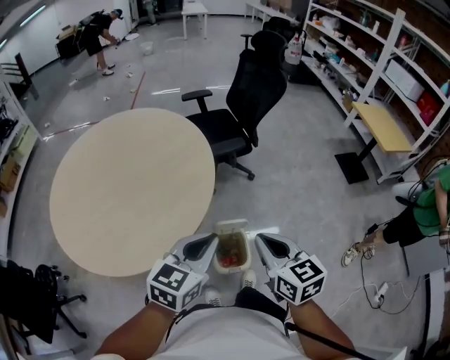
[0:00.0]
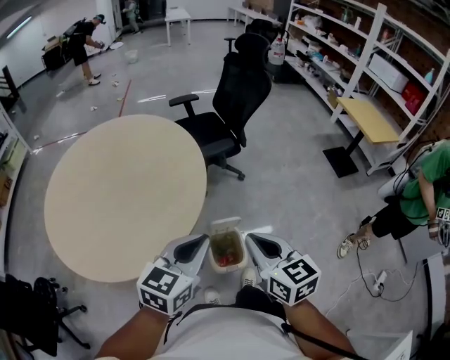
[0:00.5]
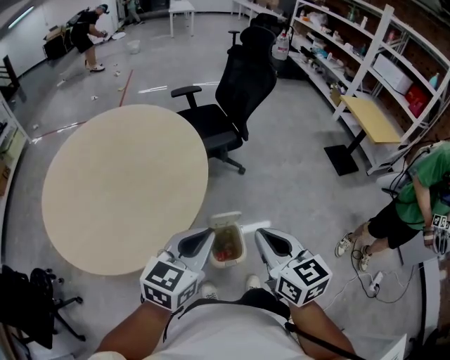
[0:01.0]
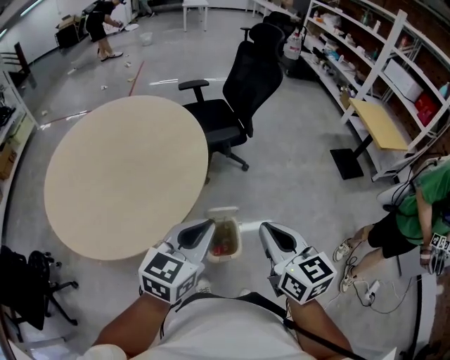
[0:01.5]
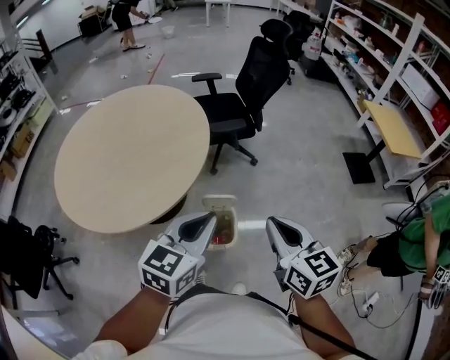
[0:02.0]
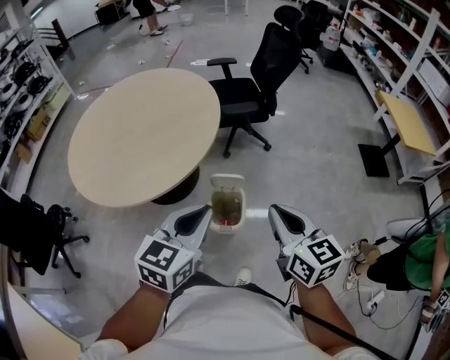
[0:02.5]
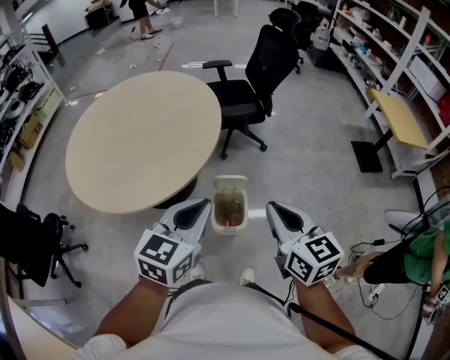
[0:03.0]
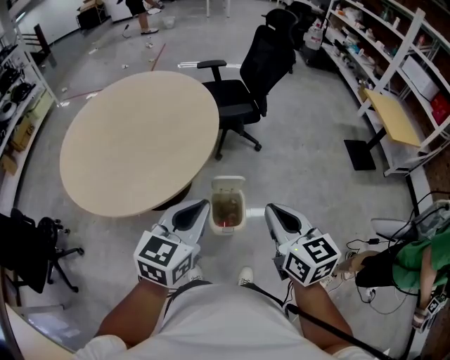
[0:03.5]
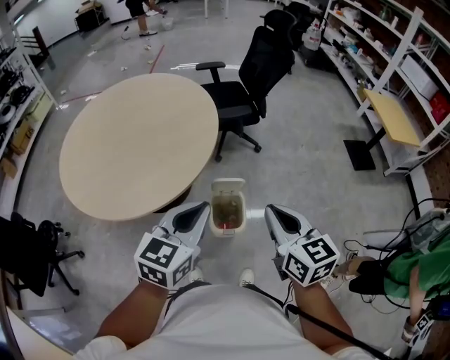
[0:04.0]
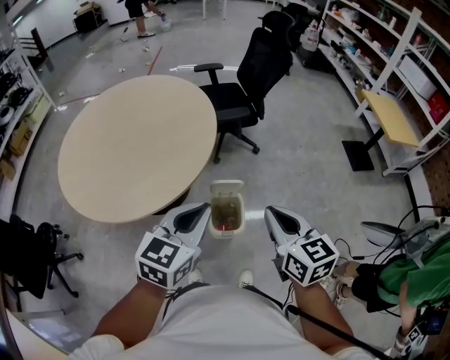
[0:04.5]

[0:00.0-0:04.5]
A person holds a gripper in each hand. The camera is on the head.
0:00.0 to 0:02.0: Both grippers move to the right, about 10 cm.
0:02.0 to 0:04.5: The right gripper moves roughly 5 cm. The left gripper is displaced to the left by approximately 5 cm.

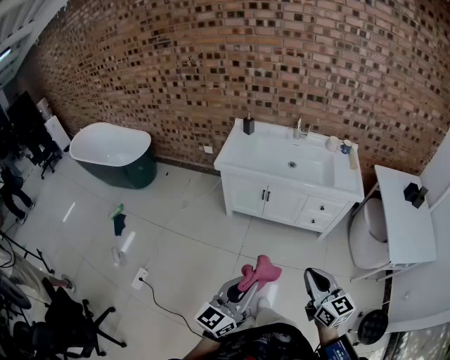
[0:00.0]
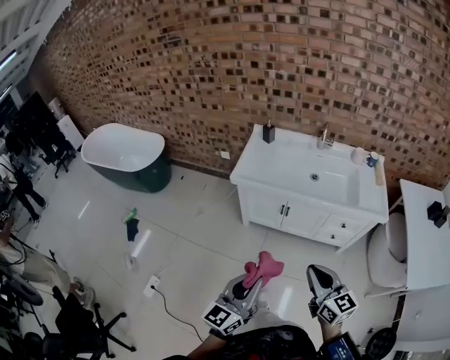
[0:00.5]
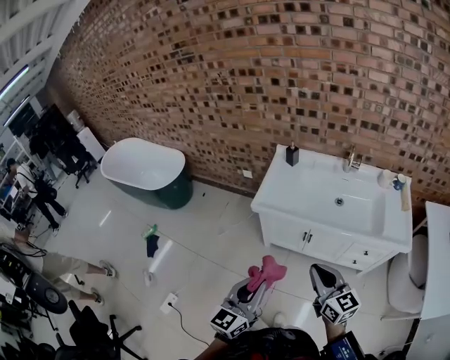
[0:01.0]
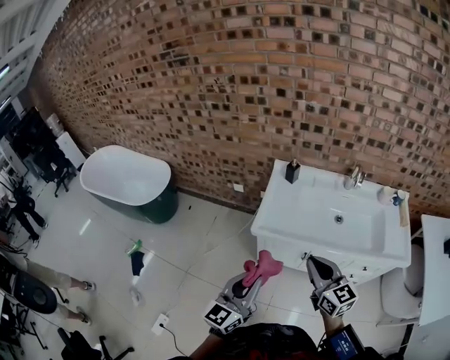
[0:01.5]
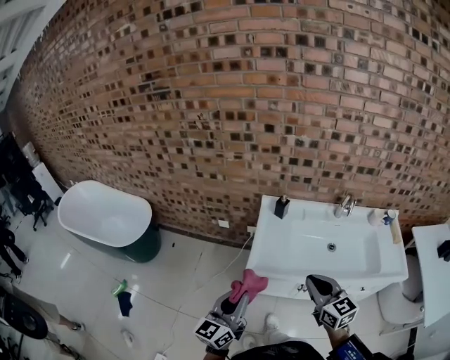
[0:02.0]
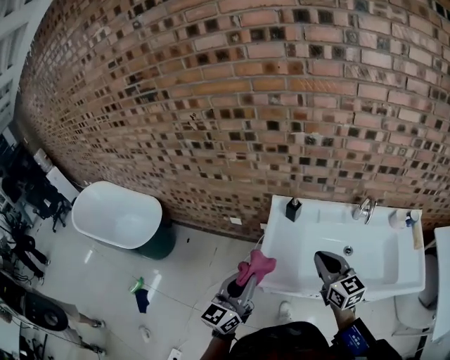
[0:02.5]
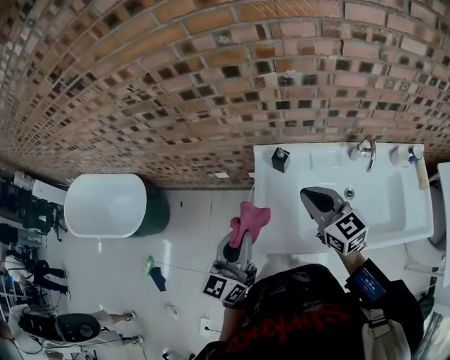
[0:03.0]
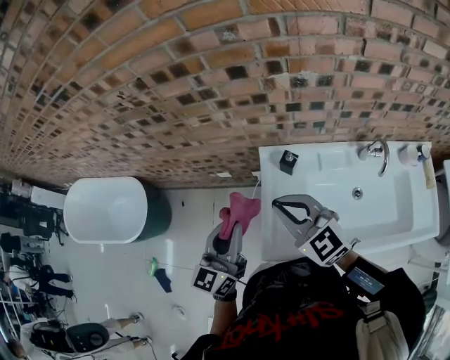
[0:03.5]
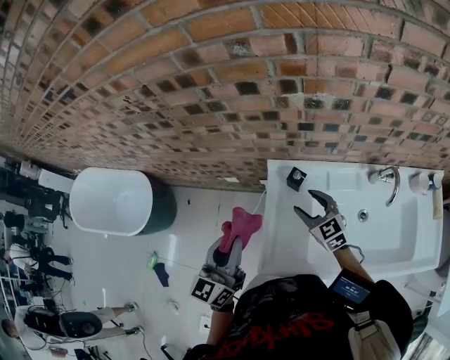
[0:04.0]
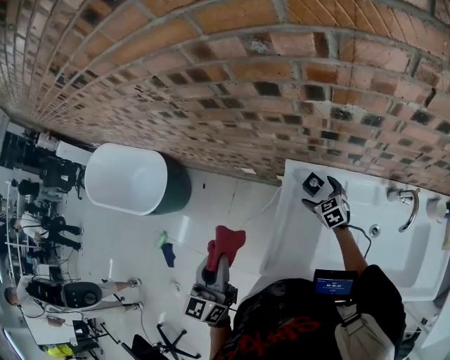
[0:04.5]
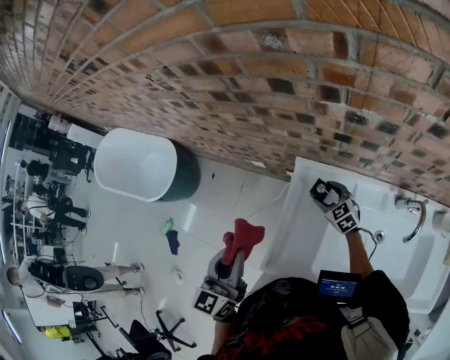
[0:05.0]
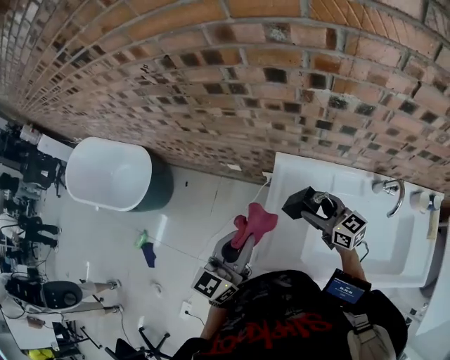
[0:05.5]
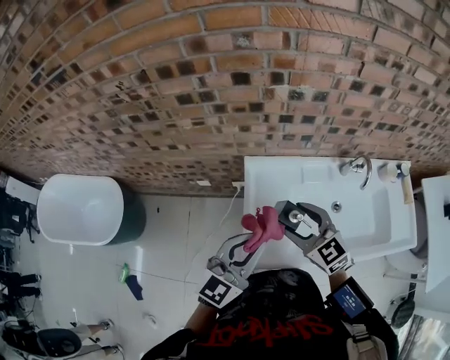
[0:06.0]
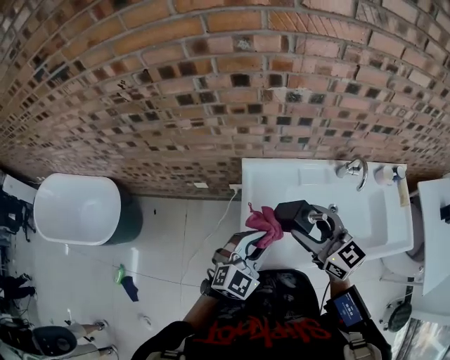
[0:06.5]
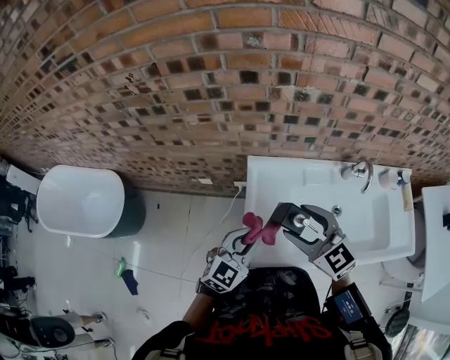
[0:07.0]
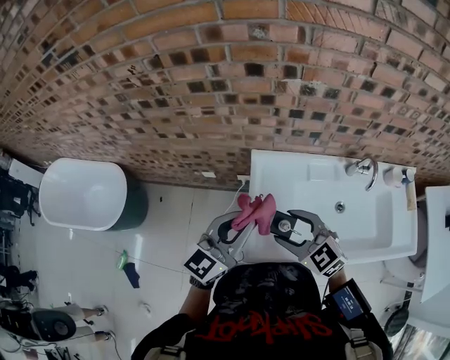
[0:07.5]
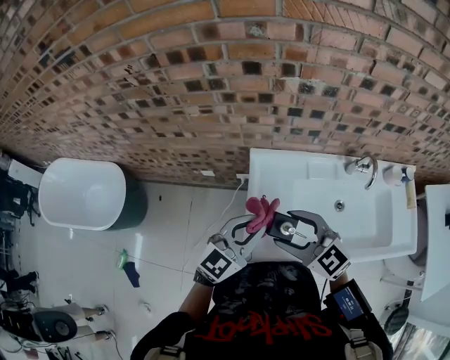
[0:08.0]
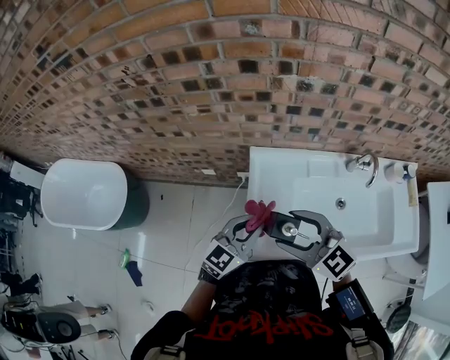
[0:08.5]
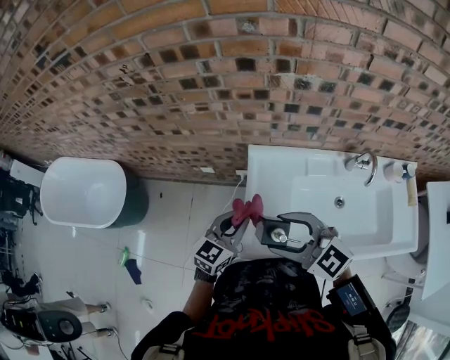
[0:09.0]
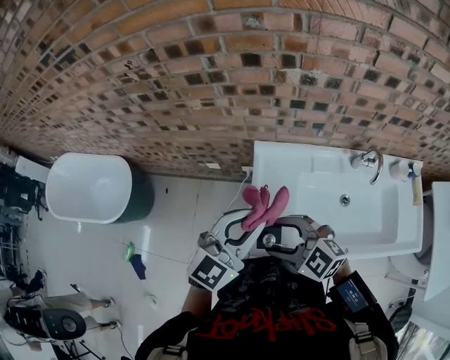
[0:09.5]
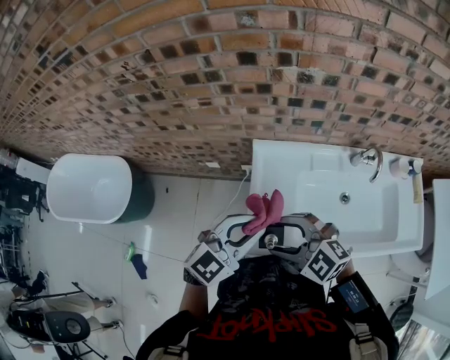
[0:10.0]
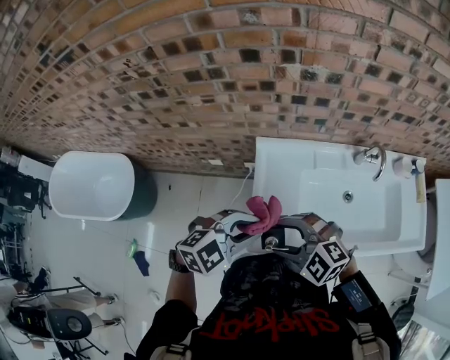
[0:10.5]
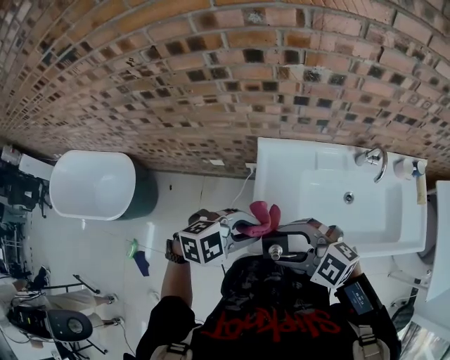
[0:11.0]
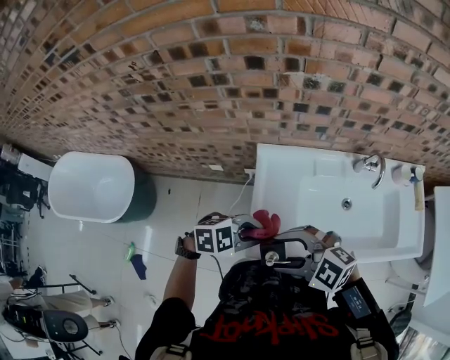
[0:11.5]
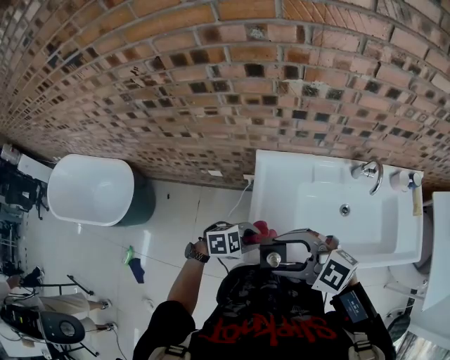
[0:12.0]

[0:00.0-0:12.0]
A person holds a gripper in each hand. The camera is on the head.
0:00.0 to 0:02.0: The two grippers travel together, forward and to the left, some 60 cm.
0:02.0 to 0:04.0: The left gripper travels forward by roughly 40 cm. Meanwhile the right gripper heads forward and downward, covering about 50 cm, and opens.
0:04.0 to 0:06.0: The right gripper moves upward, some 15 cm. Meanwhile the left gripper ends up roughly 10 cm from where it was, and rotates about 40 degrees.
0:06.0 to 0:08.0: The left gripper swings up and down, roughly 10 cm each way, with 2 reversals; the right gripper goes up and down, some 5 cm each way, reversing 2 times.
0:08.0 to 0:10.0: The left gripper swings up and down, approximately 15 cm each way, with 2 reversals. The right gripper turns by approximately 20 degrees.
0:10.0 to 0:12.0: The left gripper shifts approximately 20 cm downward, and tips its fingers downward by roughly 30 degrees; the right gripper moves approximately 5 cm.

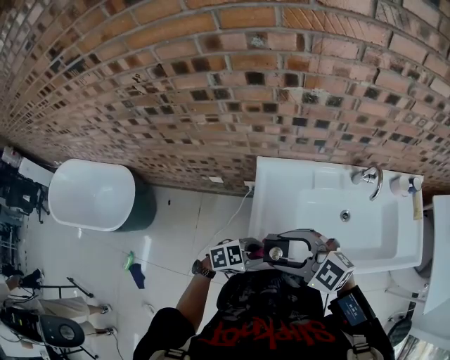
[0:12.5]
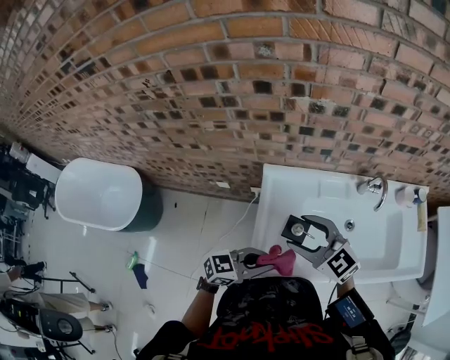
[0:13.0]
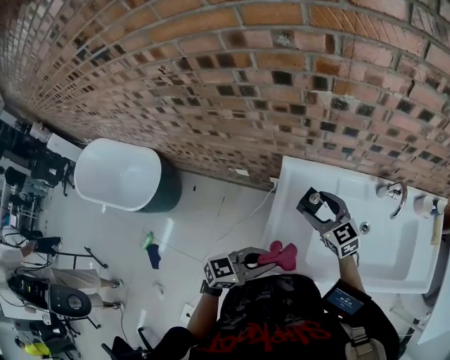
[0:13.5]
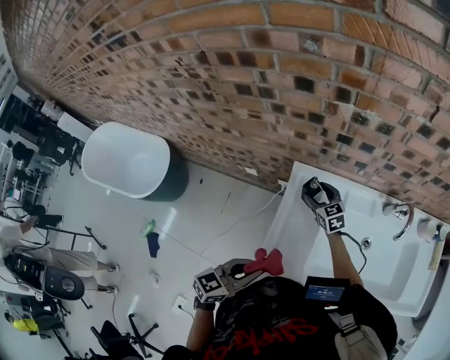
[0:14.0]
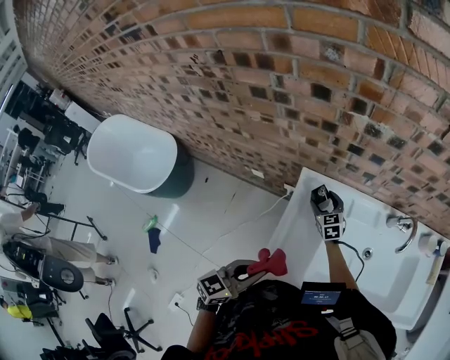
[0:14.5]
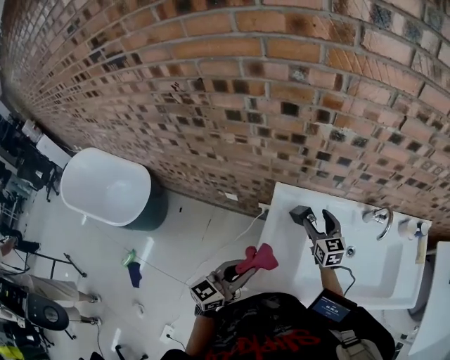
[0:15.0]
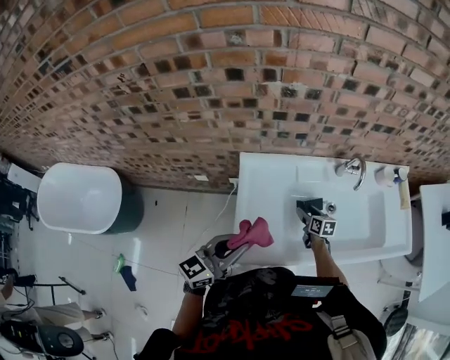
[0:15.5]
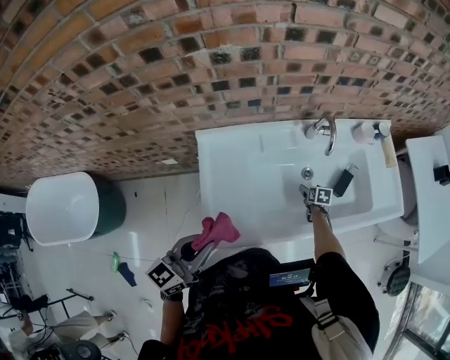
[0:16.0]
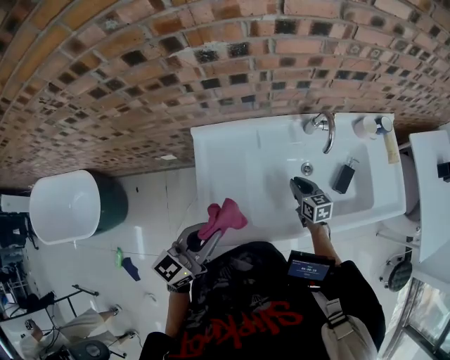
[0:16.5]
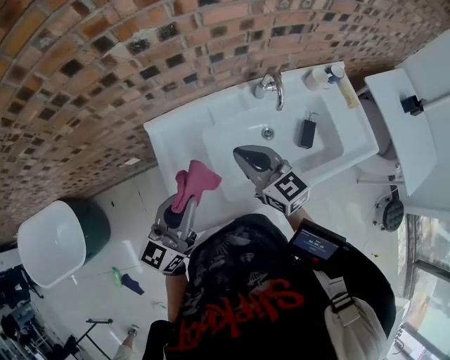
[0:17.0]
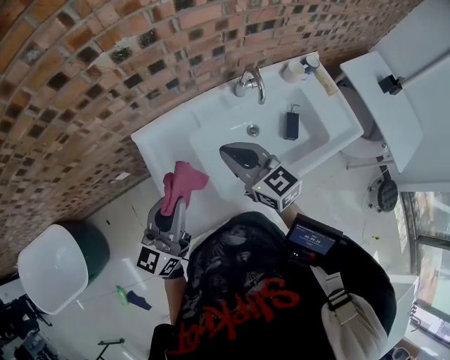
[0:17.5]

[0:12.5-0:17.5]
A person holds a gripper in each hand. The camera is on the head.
0:12.5 to 0:15.0: The right gripper shifts by roughly 30 cm, and changes its angle by approximately 50 degrees. Meanwhile the left gripper is displaced upward by approximately 10 cm, and points its fingers some 30 degrees further upward.
0:15.0 to 0:17.5: The left gripper shifts some 10 cm to the right and forward. Meanwhile the right gripper travels to the right and backward by approximately 15 cm, reaches approximately 30 cm downward, then returns, and closes its fingers.

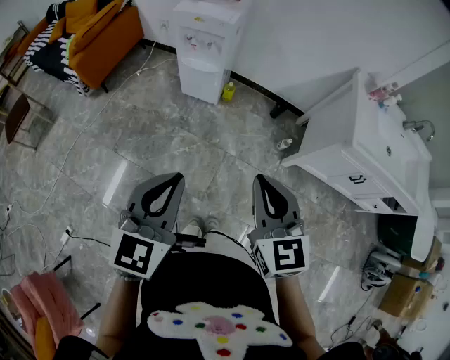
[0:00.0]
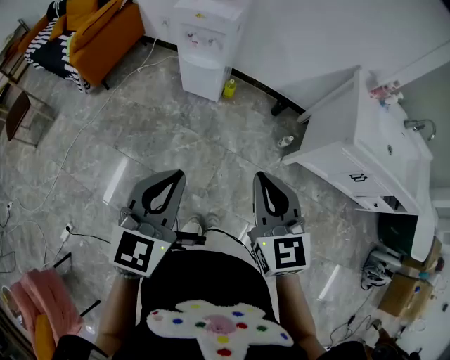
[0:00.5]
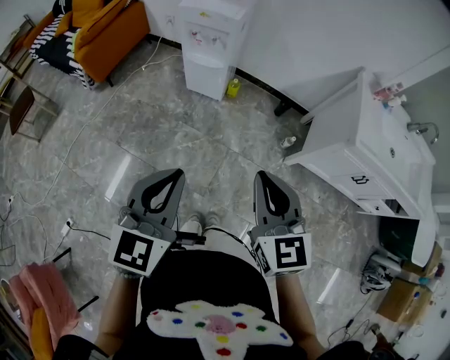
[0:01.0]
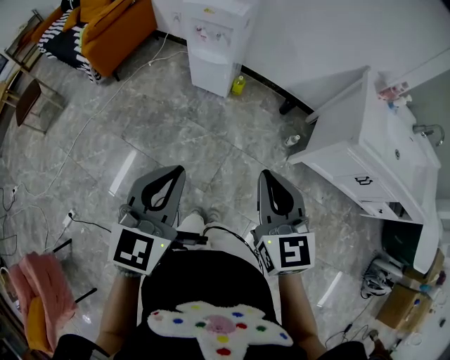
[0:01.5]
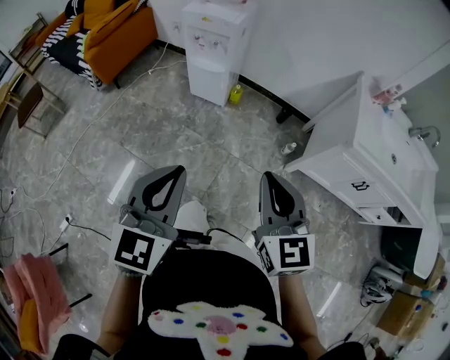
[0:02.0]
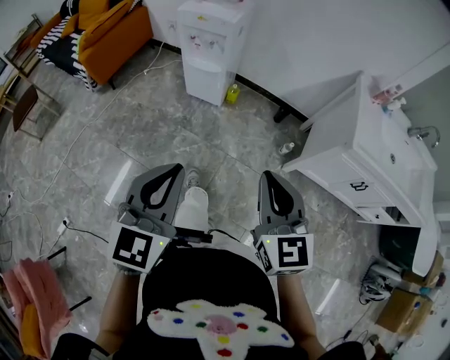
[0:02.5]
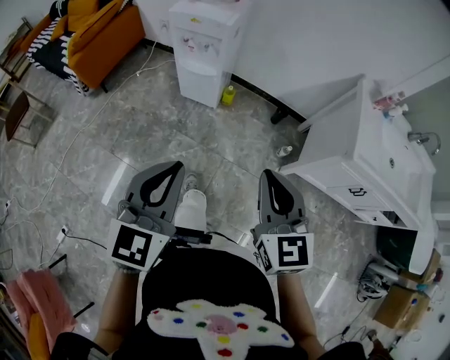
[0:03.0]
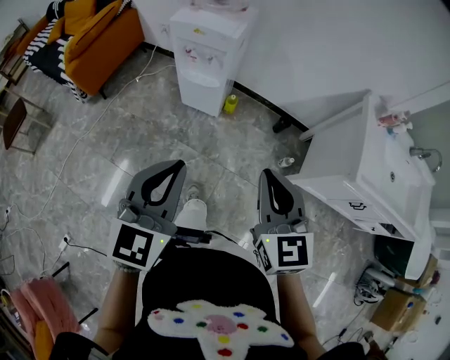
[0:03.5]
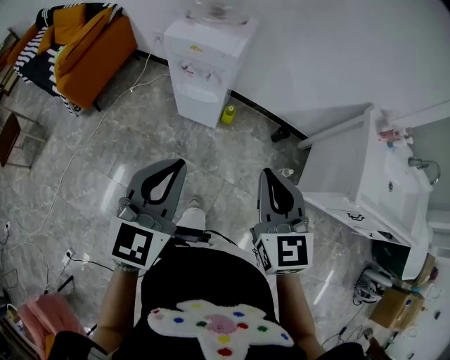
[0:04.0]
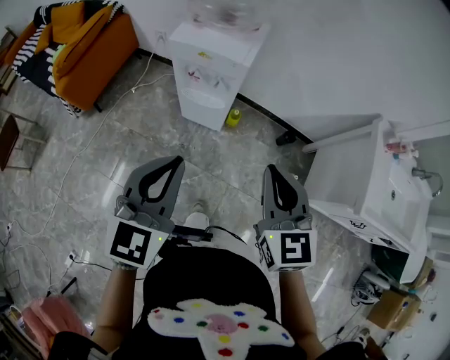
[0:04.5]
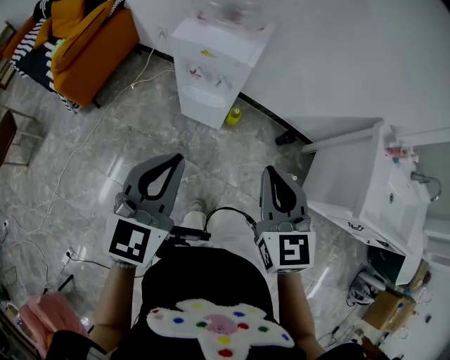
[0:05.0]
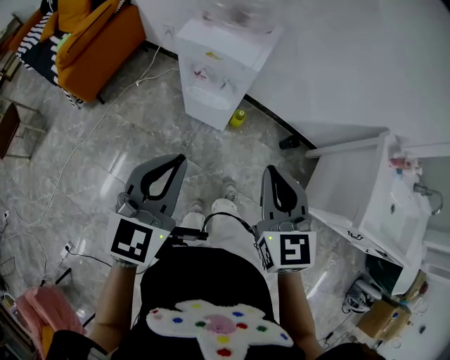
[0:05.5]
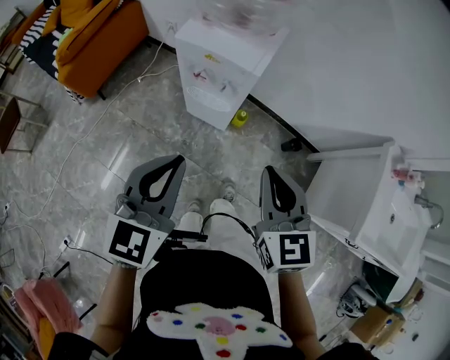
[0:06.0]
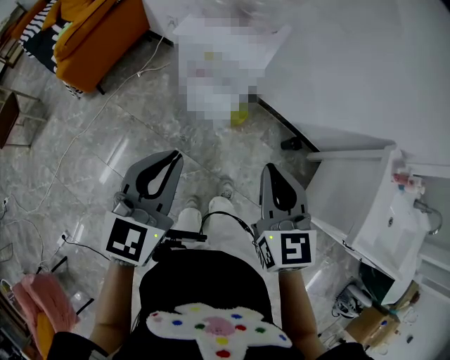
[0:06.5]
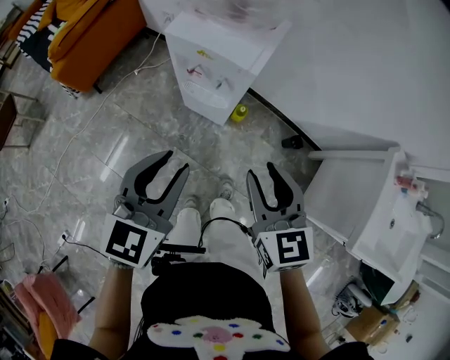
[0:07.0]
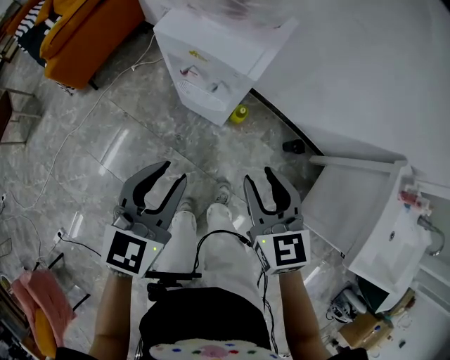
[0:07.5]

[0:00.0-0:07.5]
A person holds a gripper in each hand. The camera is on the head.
0:00.0 to 0:02.0: The right gripper shifts approximately 5 cm to the right, while the left gripper changes place by about 5 cm.
0:02.0 to 0:04.0: Both grippers travel together forward, roughly 25 cm.
0:04.0 to 0:05.5: The two grippers go approximately 10 cm forward.
0:05.5 to 0:07.5: Both grippers travel together downward and forward, about 15 cm. The left gripper opens, while the right gripper opens up.
